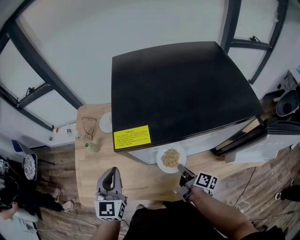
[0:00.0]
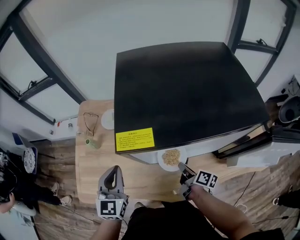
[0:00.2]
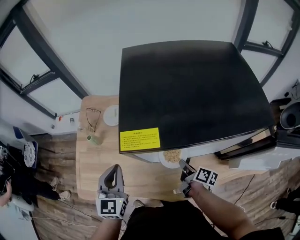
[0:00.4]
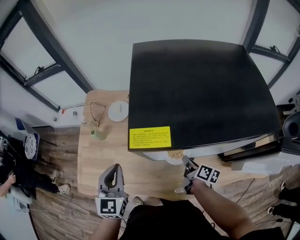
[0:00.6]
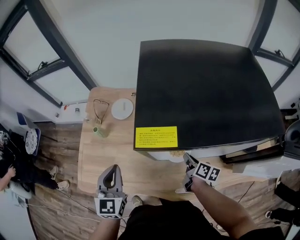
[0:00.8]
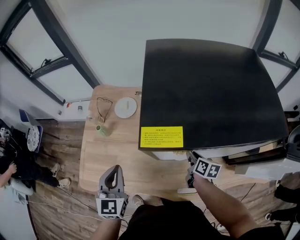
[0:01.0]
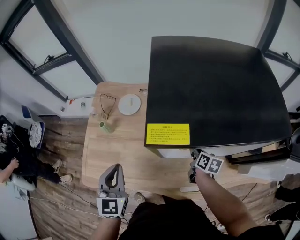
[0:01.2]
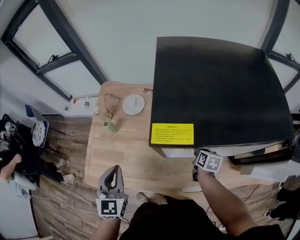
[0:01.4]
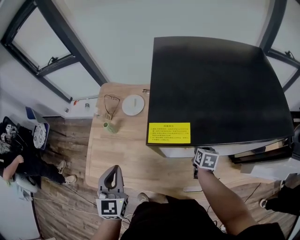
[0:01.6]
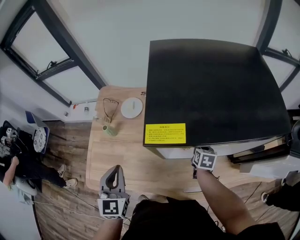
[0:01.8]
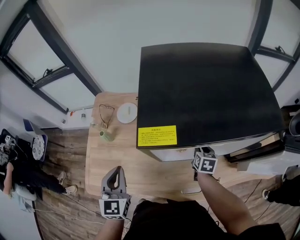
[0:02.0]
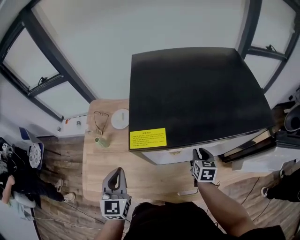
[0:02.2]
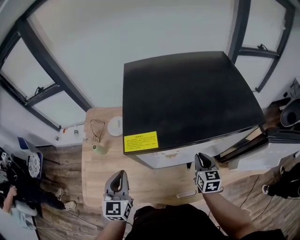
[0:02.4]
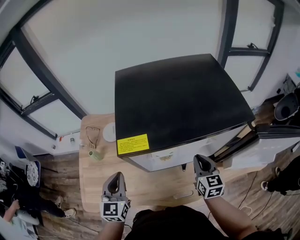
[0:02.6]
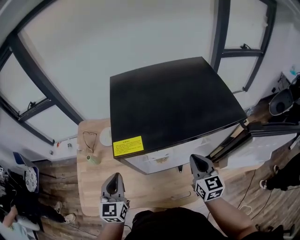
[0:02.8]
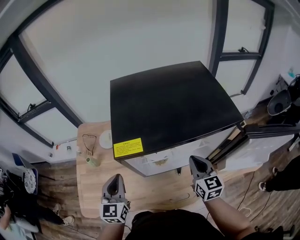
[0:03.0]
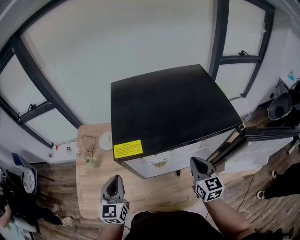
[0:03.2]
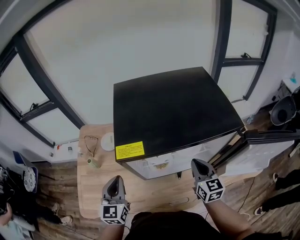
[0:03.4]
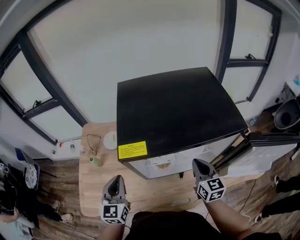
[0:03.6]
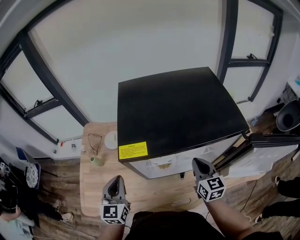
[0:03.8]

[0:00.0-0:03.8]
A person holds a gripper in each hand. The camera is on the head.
0:00.0 to 0:01.2: The left gripper travels to the left by about 5 cm. The right gripper is displaced forward by approximately 10 cm, and turns by about 30 degrees.
0:01.2 to 0:02.6: The right gripper is displaced upward, to the right and backward by about 20 cm, and rotates approximately 40 degrees, while the left gripper travels to the right by roughly 5 cm.
0:02.6 to 0:03.8: The grippers stay close to where they were, moving slightly.

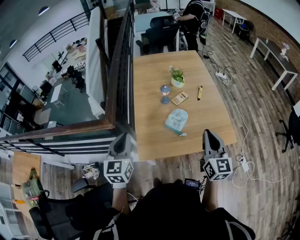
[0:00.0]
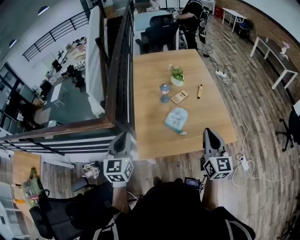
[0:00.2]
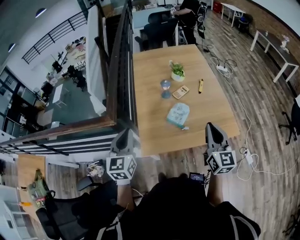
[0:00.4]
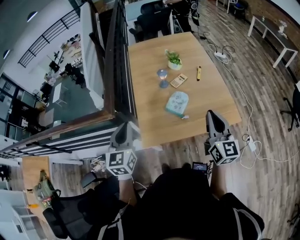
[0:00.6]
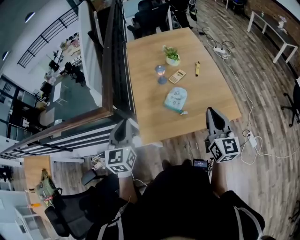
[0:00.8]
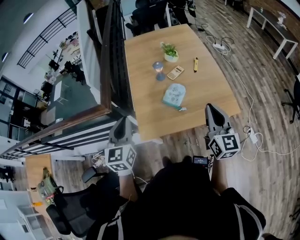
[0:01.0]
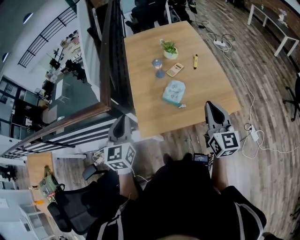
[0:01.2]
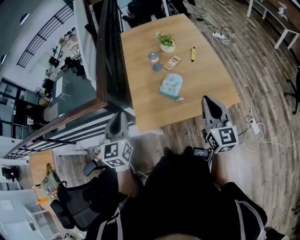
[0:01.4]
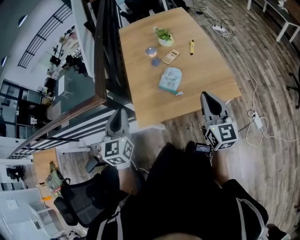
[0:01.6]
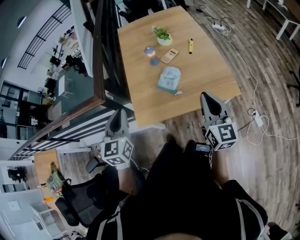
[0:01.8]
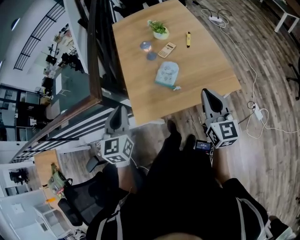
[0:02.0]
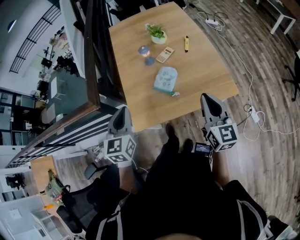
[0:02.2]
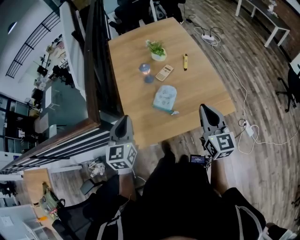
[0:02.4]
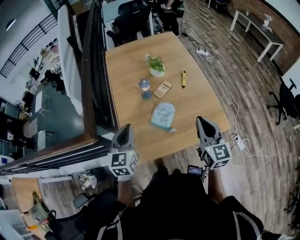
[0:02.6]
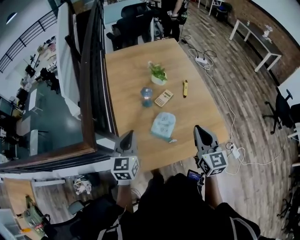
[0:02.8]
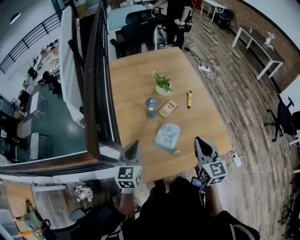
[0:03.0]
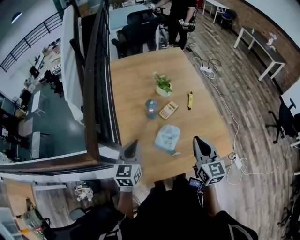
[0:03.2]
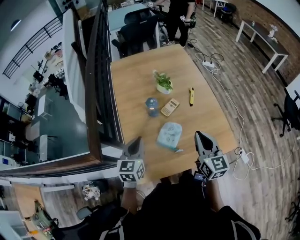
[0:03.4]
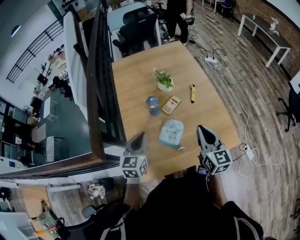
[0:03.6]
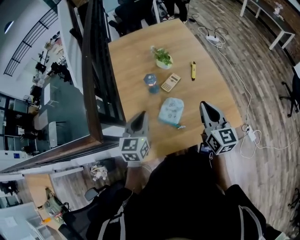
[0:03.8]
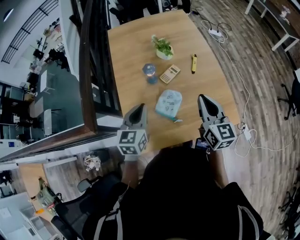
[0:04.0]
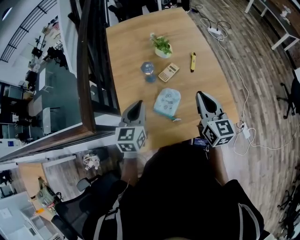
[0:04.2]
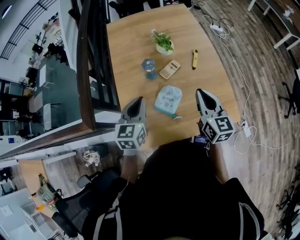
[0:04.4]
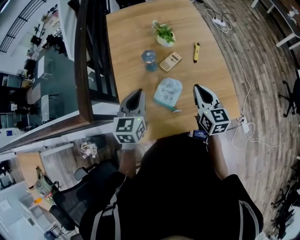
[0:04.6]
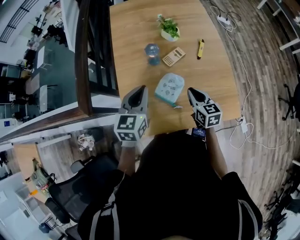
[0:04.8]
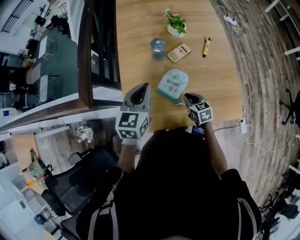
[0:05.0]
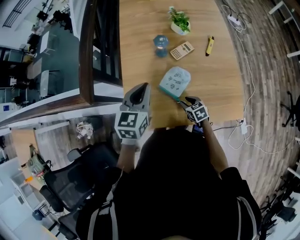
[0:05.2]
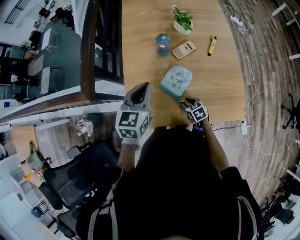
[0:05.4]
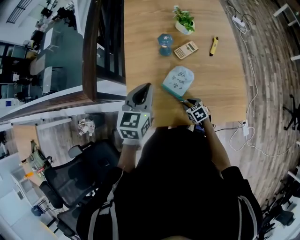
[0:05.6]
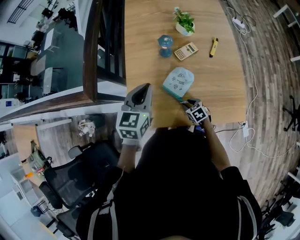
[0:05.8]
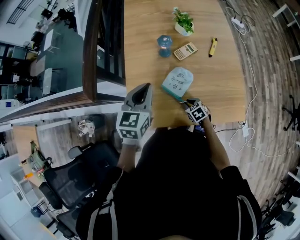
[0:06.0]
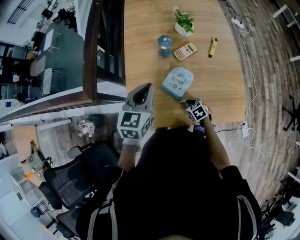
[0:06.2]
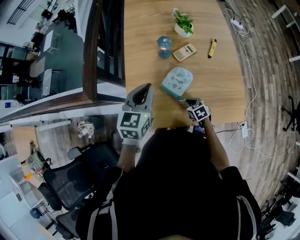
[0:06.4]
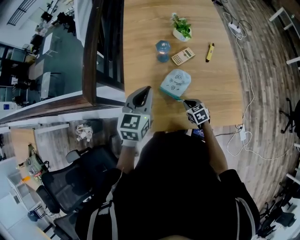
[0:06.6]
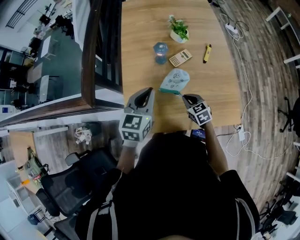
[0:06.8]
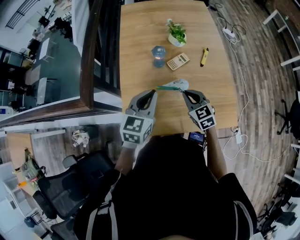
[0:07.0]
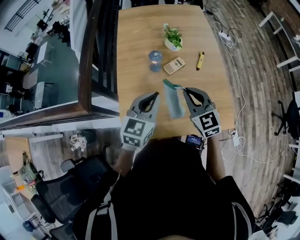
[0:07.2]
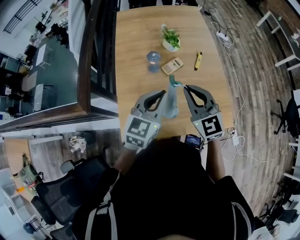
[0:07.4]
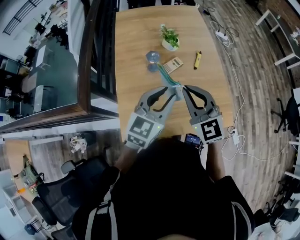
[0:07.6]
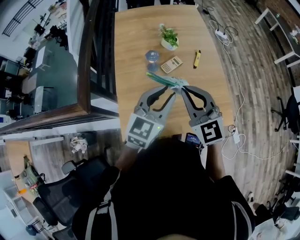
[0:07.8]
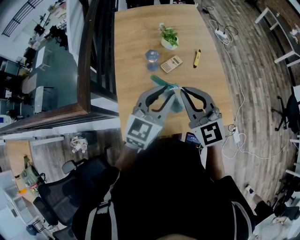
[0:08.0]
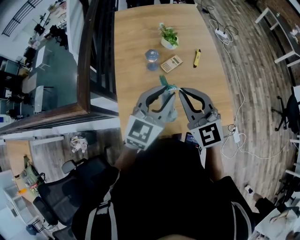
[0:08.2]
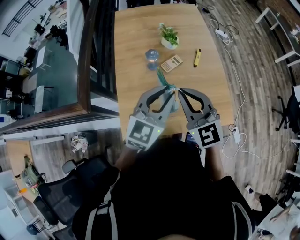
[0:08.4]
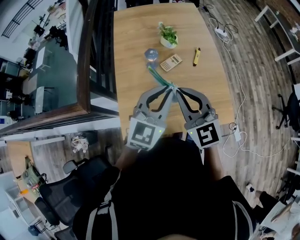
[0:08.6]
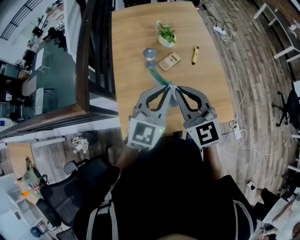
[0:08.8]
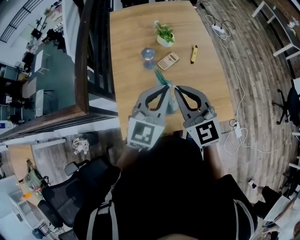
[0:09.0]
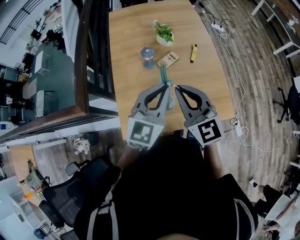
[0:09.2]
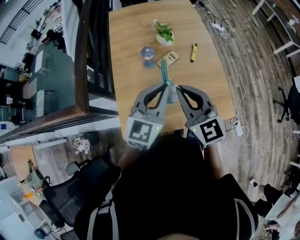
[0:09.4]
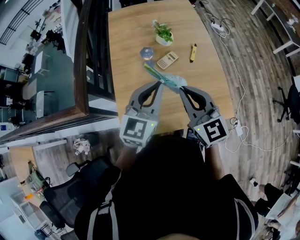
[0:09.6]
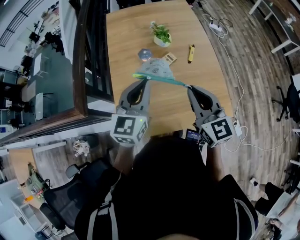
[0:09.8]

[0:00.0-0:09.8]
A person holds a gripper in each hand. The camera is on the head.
0:00.0 to 0:01.4: The left gripper shifts approximately 5 cm to the right.
0:01.4 to 0:02.8: The right gripper heads forward, covering some 15 cm. The left gripper shifts approximately 20 cm forward and downward.
0:02.8 to 0:04.2: The right gripper is displaced forward by about 10 cm, while the left gripper shifts approximately 10 cm to the right and forward.
0:04.2 to 0:05.6: The right gripper moves downward, approximately 35 cm, points its fingers about 50 degrees further downward, and opens its fingers.
0:05.6 to 0:07.0: The right gripper travels upward by approximately 20 cm, rotates about 30 degrees, and closes.
0:07.0 to 0:08.4: The left gripper travels upward and to the right by approximately 10 cm, and changes its angle by about 20 degrees. The right gripper shifts roughly 20 cm upward, and rotates roughly 30 degrees.
0:08.4 to 0:09.8: The right gripper goes some 5 cm to the right, and swivels roughly 20 degrees. Meanwhile the left gripper goes about 5 cm to the left.

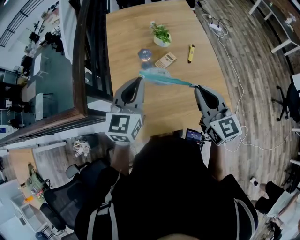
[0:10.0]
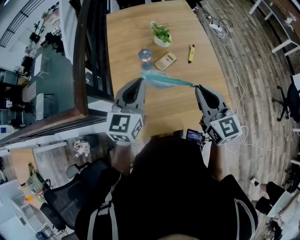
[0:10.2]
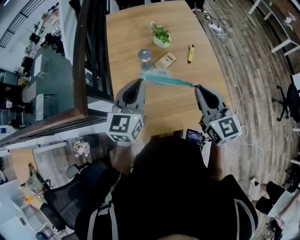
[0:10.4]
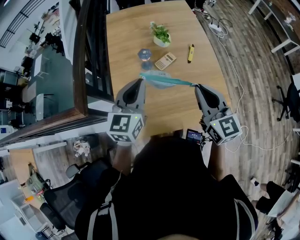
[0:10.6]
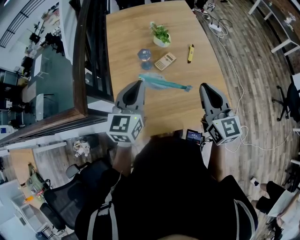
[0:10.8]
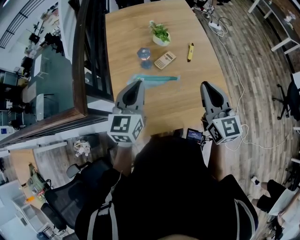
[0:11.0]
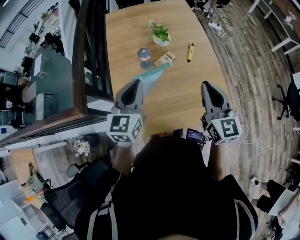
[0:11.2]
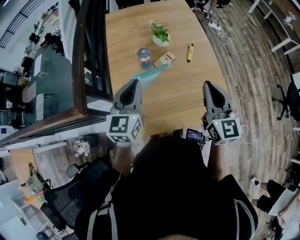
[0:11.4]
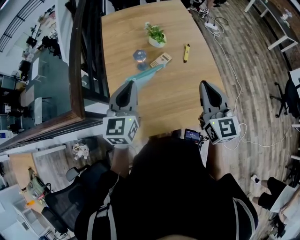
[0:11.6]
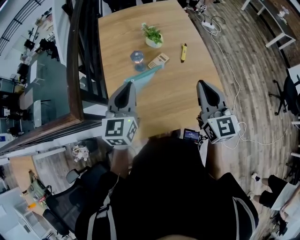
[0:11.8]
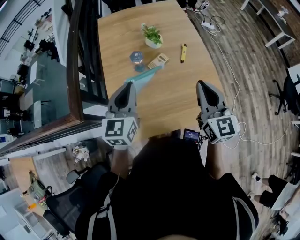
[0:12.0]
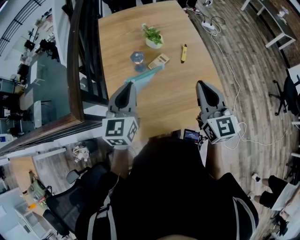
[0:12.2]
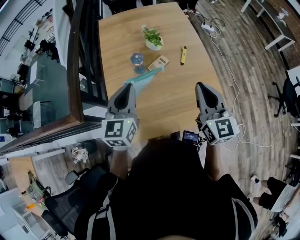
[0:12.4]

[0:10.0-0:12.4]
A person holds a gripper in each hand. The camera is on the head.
0:10.0 to 0:11.2: The grippers make only small movements.
0:11.2 to 0:12.4: Both grippers stay put.

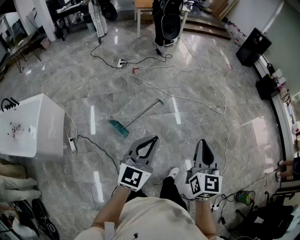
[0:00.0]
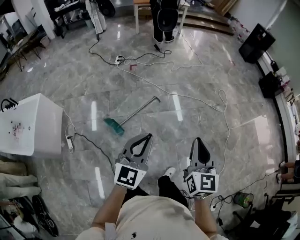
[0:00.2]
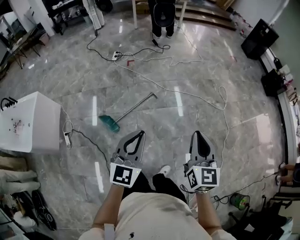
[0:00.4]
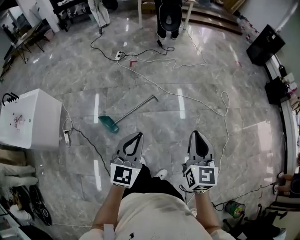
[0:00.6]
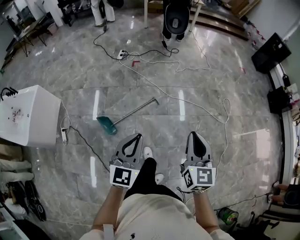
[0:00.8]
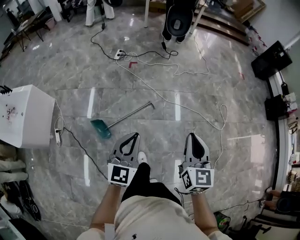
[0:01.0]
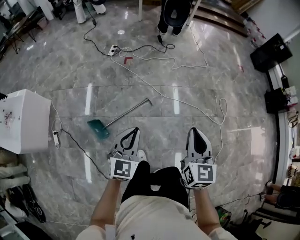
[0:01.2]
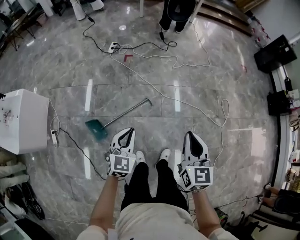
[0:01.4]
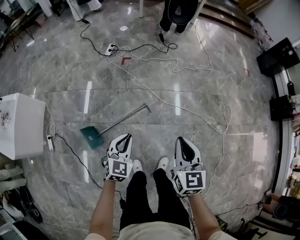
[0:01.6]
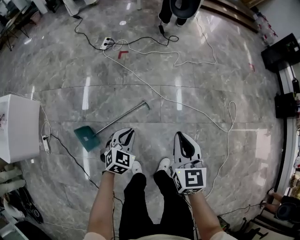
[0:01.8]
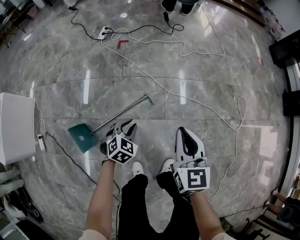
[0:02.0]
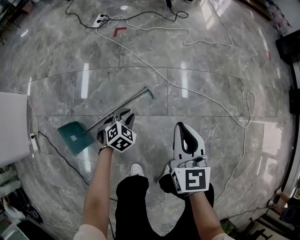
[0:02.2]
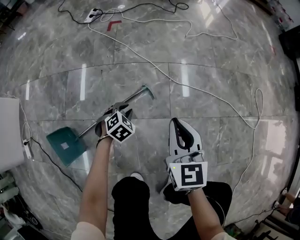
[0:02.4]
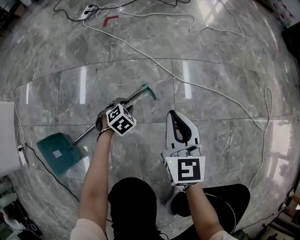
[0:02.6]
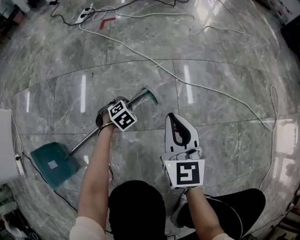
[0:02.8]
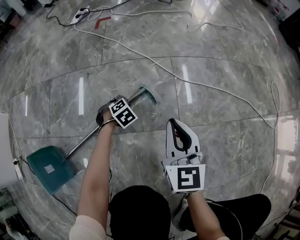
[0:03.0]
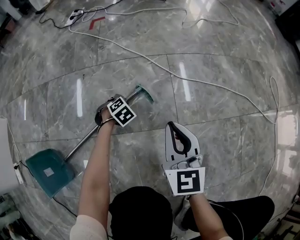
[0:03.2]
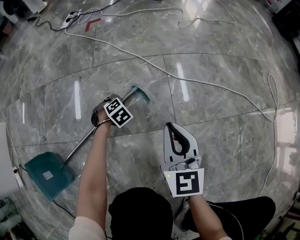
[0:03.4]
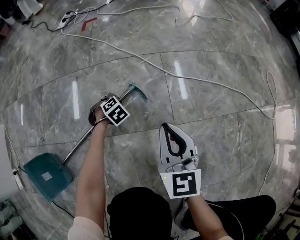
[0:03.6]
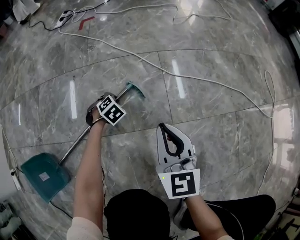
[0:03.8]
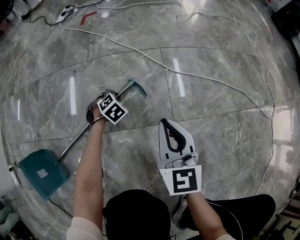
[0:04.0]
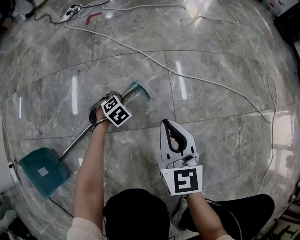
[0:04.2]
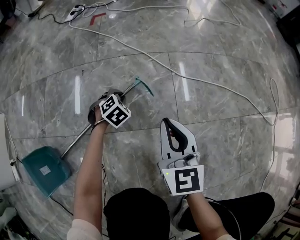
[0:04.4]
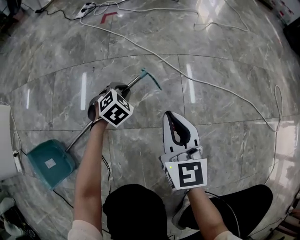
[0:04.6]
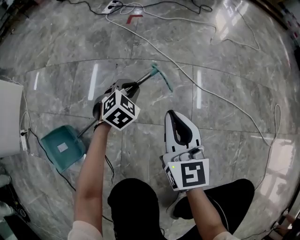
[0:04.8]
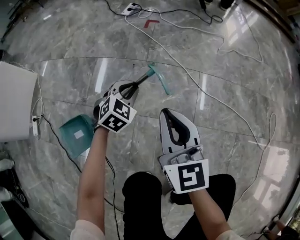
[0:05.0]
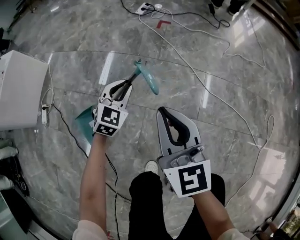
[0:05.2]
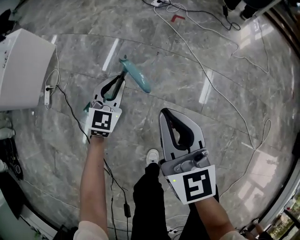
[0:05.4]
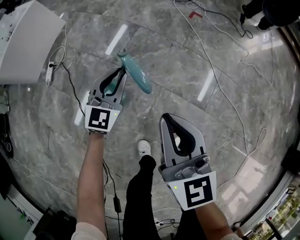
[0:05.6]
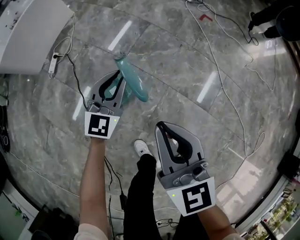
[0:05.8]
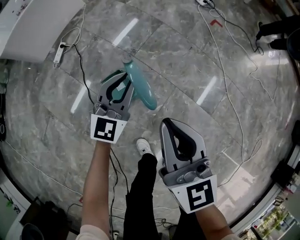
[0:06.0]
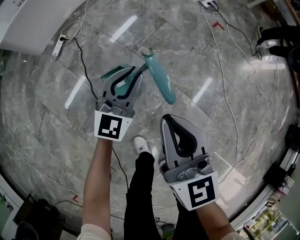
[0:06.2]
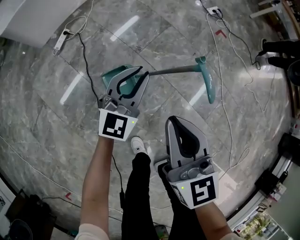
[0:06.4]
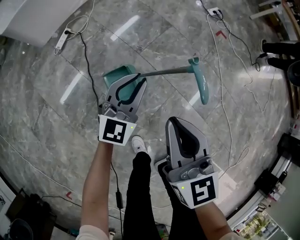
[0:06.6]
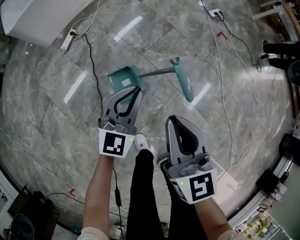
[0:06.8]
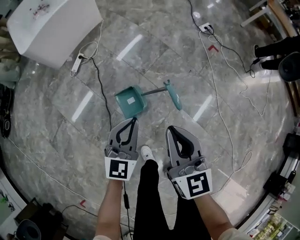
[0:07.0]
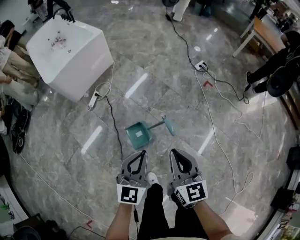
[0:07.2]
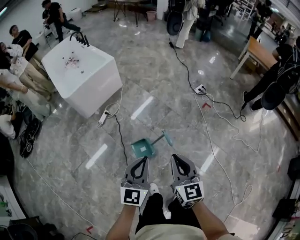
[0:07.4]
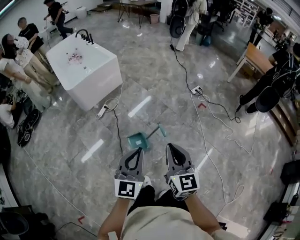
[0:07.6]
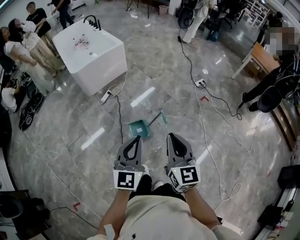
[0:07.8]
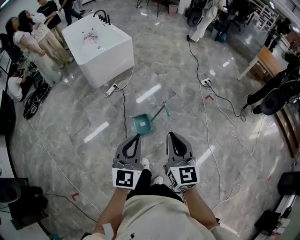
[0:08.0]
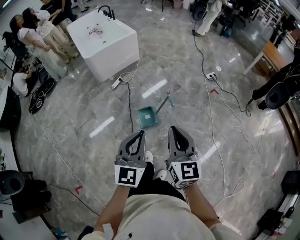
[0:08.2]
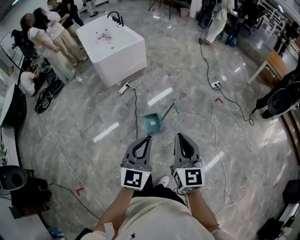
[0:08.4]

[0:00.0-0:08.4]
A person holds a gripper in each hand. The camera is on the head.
0:00.0 to 0:01.4: The left gripper travels forward and downward by roughly 40 cm, and rotates roughly 30 degrees. The right gripper is displaced forward by roughly 40 cm.
0:01.4 to 0:02.8: The two grippers go roughly 80 cm downward. The left gripper tips its fingers downward by approximately 50 degrees.
0:02.8 to 0:04.2: The left gripper shifts some 5 cm downward.
0:04.2 to 0:05.6: The two grippers go approximately 50 cm upward. The left gripper tips its fingers upward by approximately 60 degrees; the right gripper rotates roughly 40 degrees.
0:05.6 to 0:07.0: The left gripper is displaced to the left, upward and backward by some 25 cm. Meanwhile the right gripper travels to the left and upward by some 20 cm.
0:07.0 to 0:08.4: The grippers both shift upward and backward by some 40 cm. The left gripper changes its angle by about 20 degrees.
